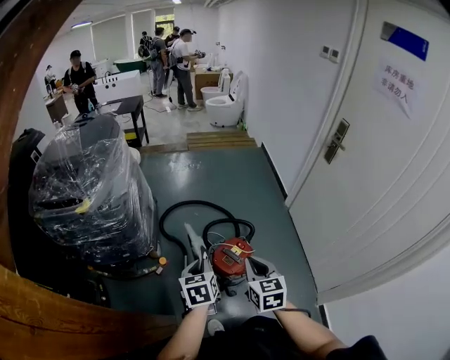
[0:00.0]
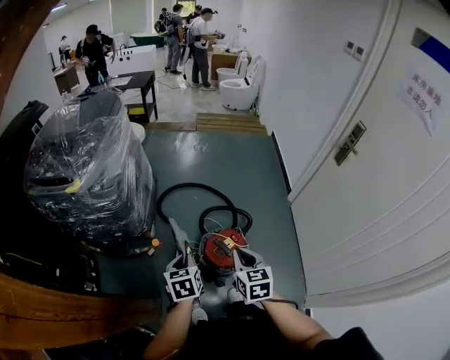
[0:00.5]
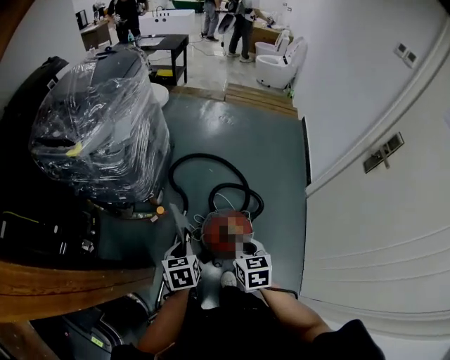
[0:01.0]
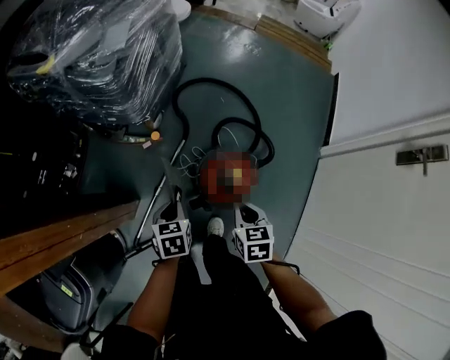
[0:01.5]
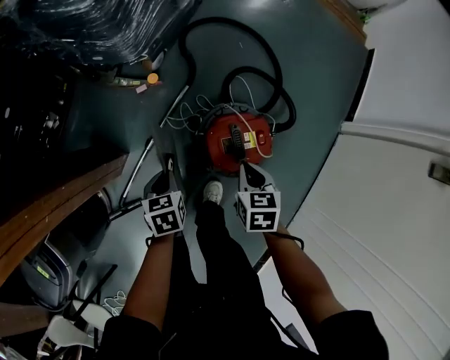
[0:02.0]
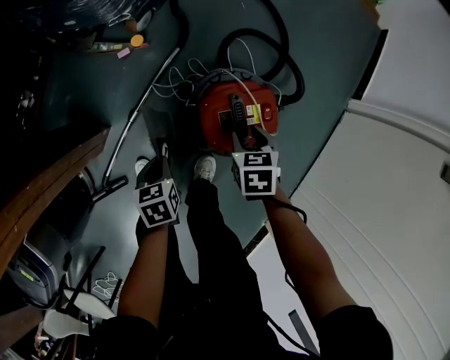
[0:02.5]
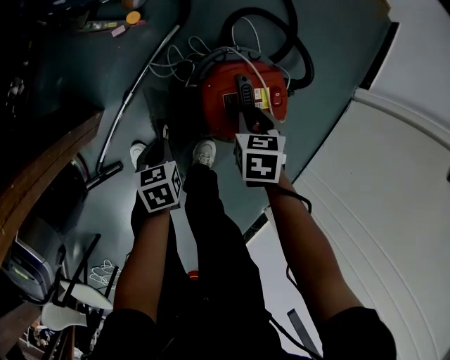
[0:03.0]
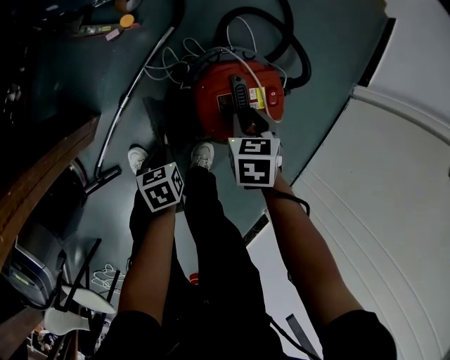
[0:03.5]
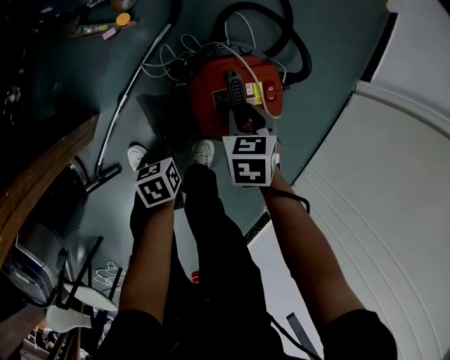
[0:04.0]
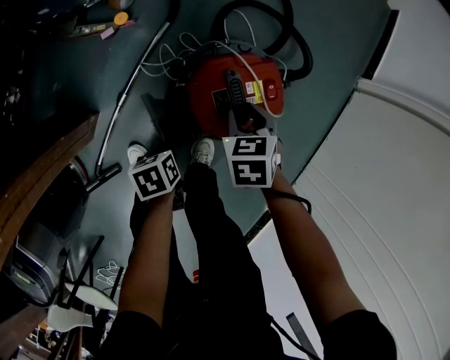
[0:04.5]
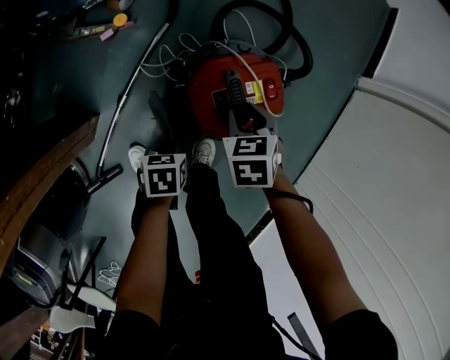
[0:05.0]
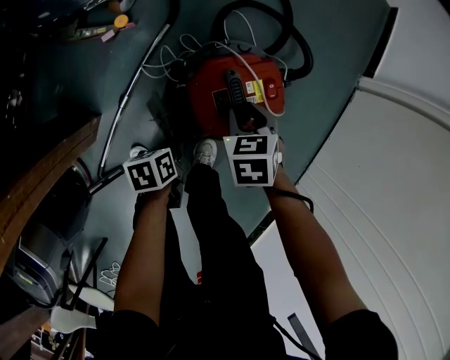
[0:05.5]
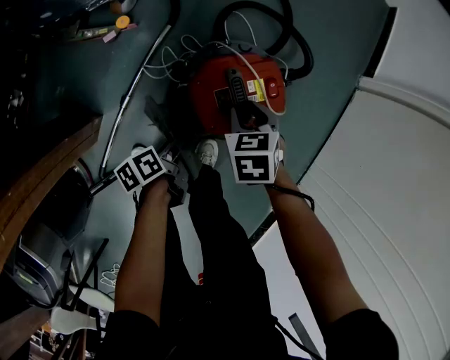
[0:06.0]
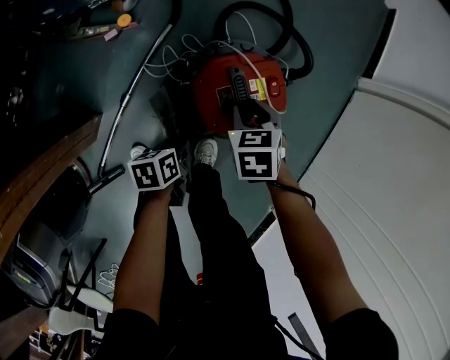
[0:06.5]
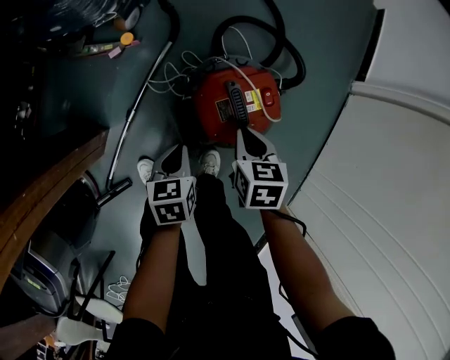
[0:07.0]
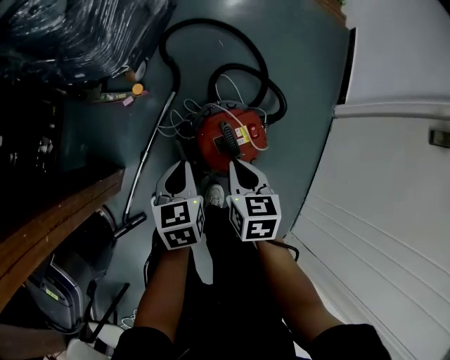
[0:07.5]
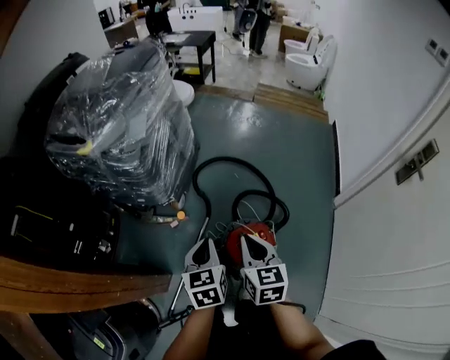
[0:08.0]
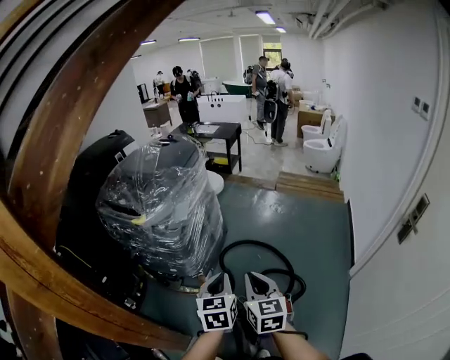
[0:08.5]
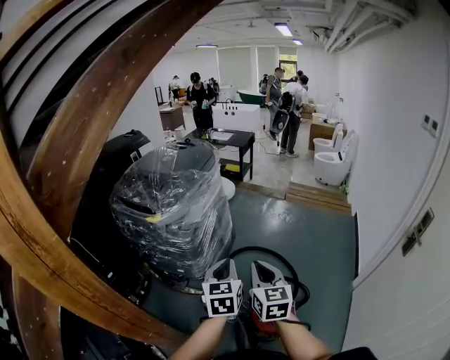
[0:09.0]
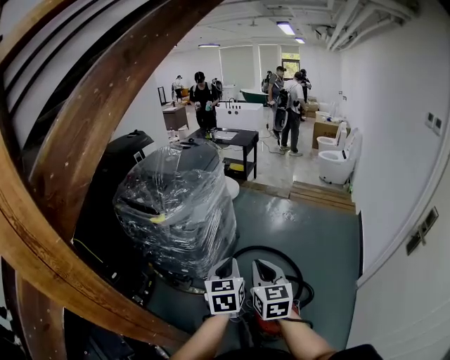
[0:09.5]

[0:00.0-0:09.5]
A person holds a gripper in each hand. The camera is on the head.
0:00.0 to 0:02.0: Both grippers travel together downward, some 35 cm. The right gripper swivels approximately 40 degrees. The left gripper turns by about 40 degrees.
0:02.0 to 0:04.0: Both grippers travel together downward, roughly 15 cm. The right gripper opens up.
0:05.5 to 0:07.5: Both grippers move upward, roughly 20 cm. The left gripper swivels some 40 degrees. The right gripper rotates roughly 30 degrees, and closes.
0:07.5 to 0:09.5: Both grippers move upward, about 50 cm. The left gripper changes its angle by approximately 30 degrees; the right gripper points its fingers roughly 40 degrees further upward.

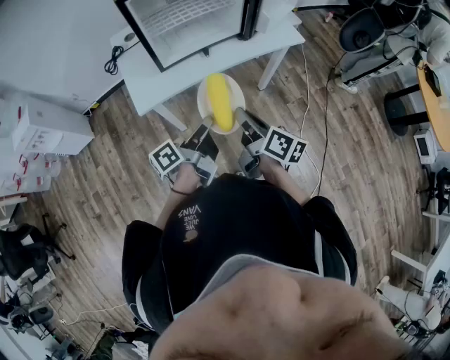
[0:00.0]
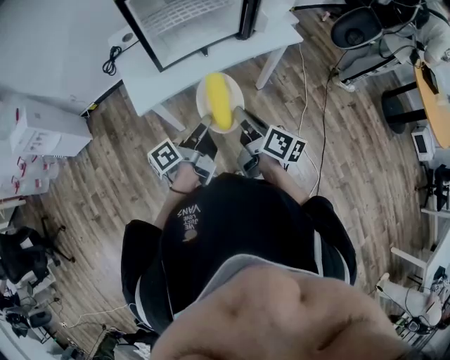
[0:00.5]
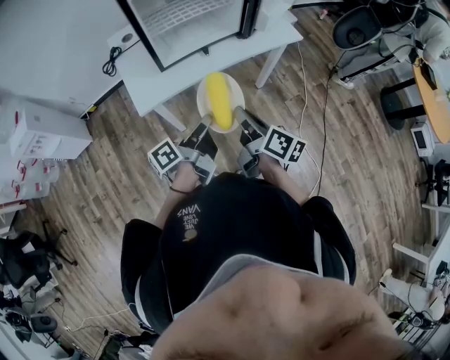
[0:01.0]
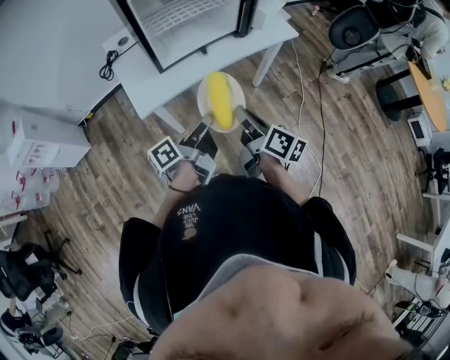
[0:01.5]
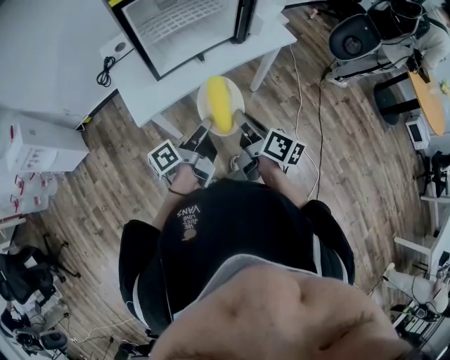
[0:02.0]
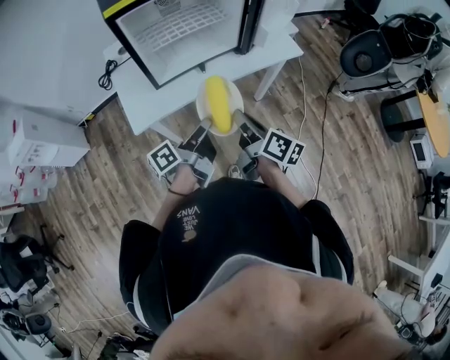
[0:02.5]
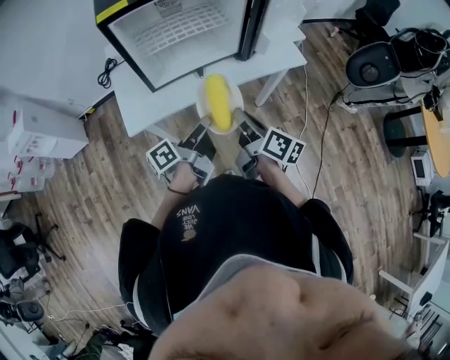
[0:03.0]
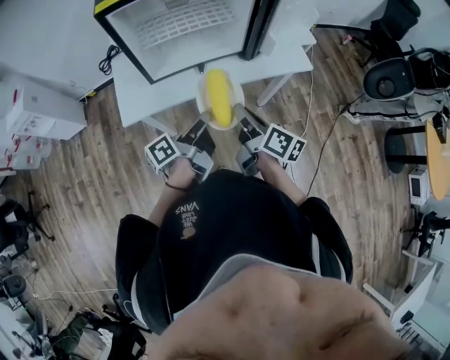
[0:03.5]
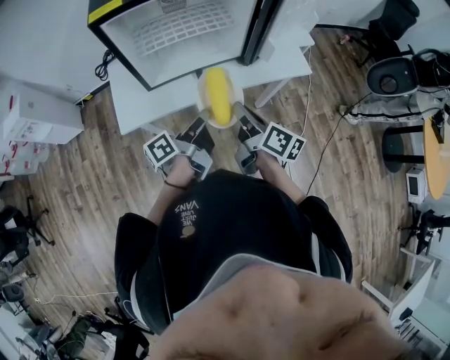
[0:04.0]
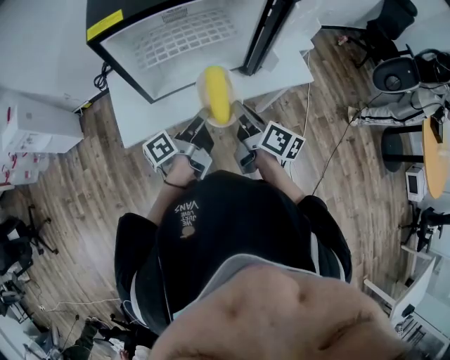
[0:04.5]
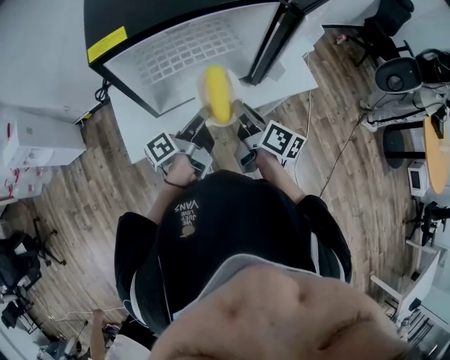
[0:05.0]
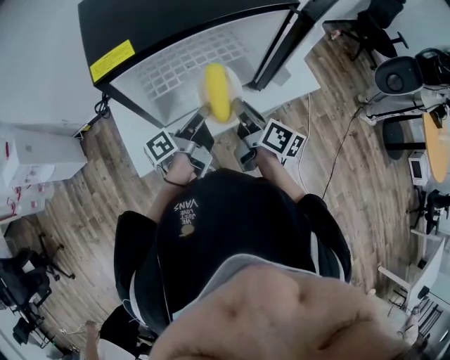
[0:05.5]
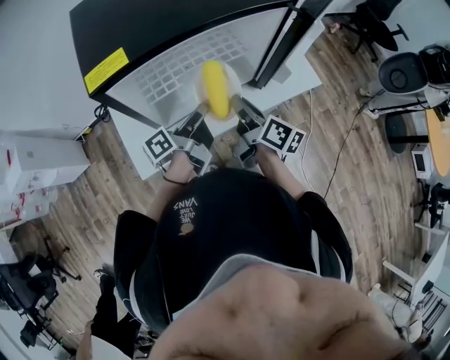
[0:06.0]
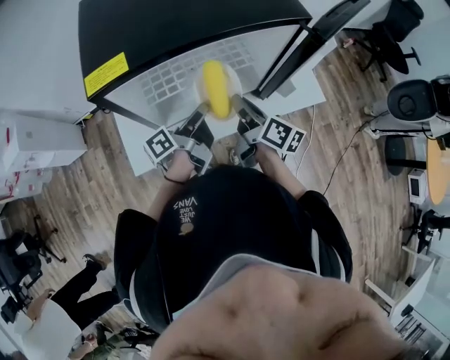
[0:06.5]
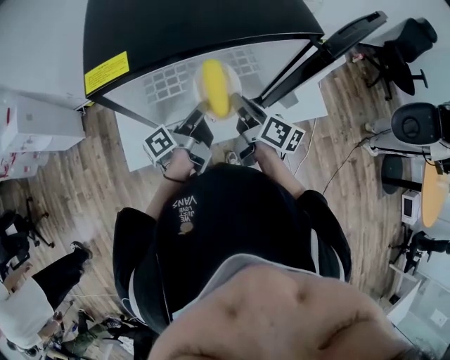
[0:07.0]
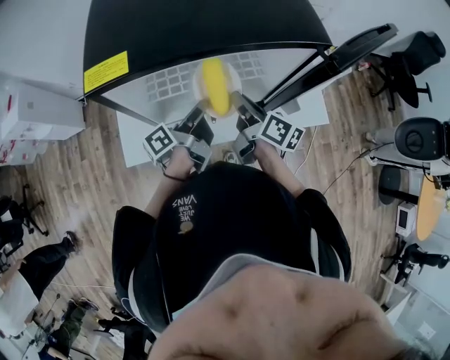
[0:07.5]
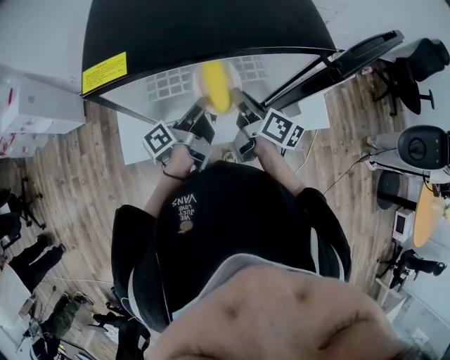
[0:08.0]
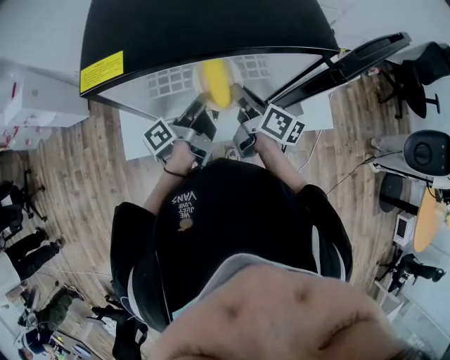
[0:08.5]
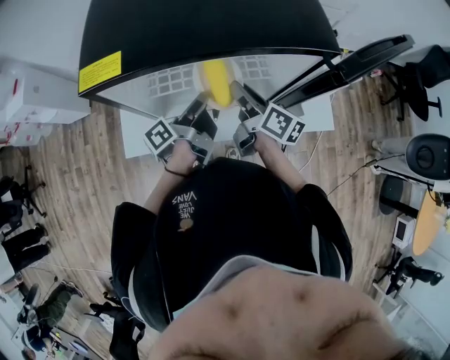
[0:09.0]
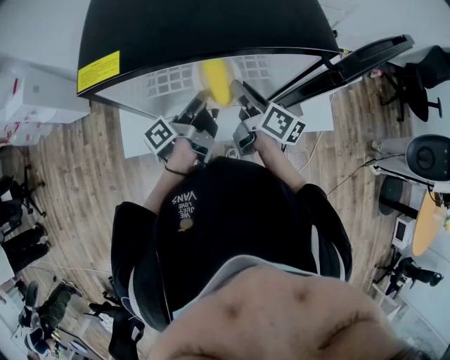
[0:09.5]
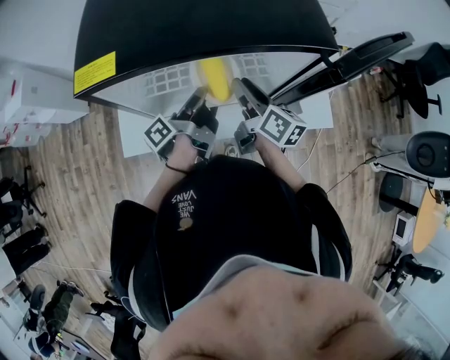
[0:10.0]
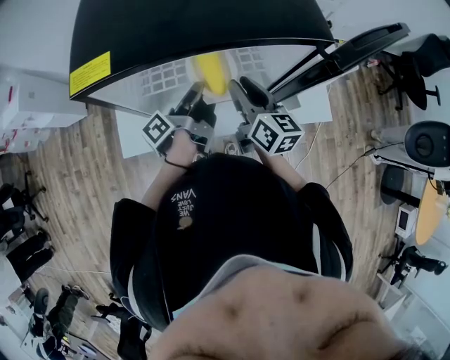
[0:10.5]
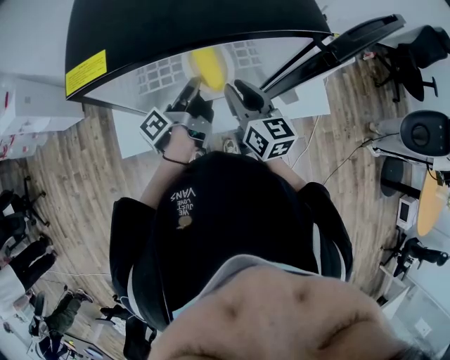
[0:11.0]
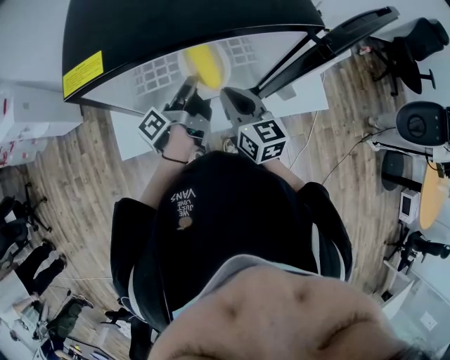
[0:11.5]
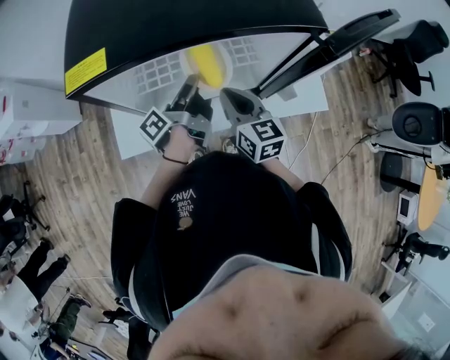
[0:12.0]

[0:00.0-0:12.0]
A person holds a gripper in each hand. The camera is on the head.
0:00.0 to 0:02.0: The grippers make only small movements.
0:02.0 to 0:04.0: Both grippers travel together forward, some 15 cm.
0:04.0 to 0:06.0: Both grippers travel together forward and to the left, approximately 15 cm.
0:06.0 to 0:08.0: The left gripper moves forward, some 5 cm, and changes its angle by some 20 degrees. The right gripper heads forward, covering some 10 cm.
0:08.0 to 0:10.0: The grippers stay close to where they were, moving slightly.
0:10.0 to 0:12.0: The right gripper moves backward, about 5 cm, turns by some 30 degrees, and closes its fingers.

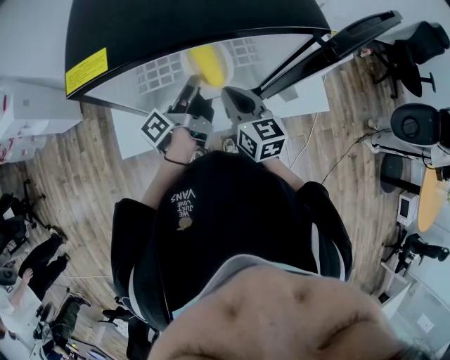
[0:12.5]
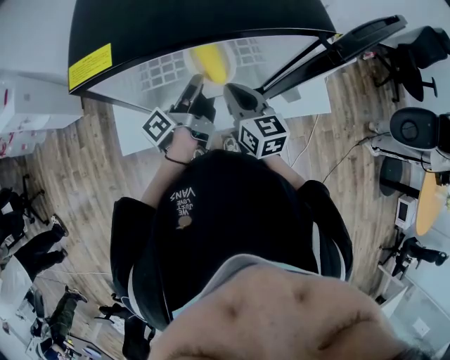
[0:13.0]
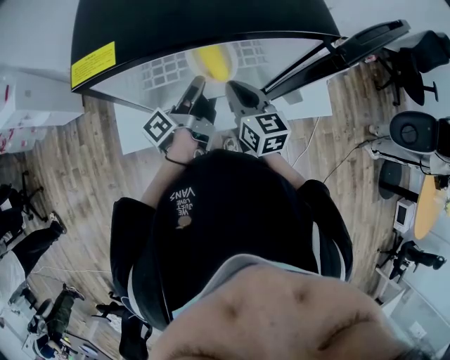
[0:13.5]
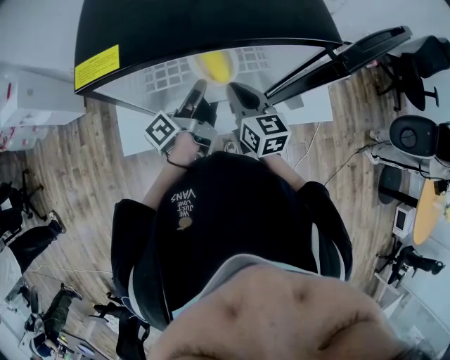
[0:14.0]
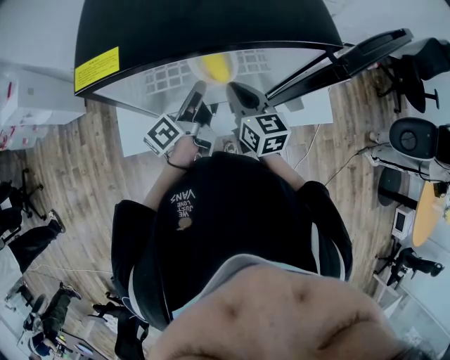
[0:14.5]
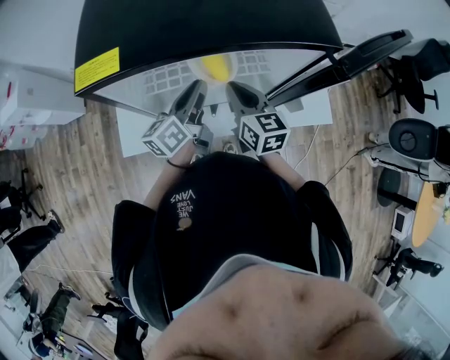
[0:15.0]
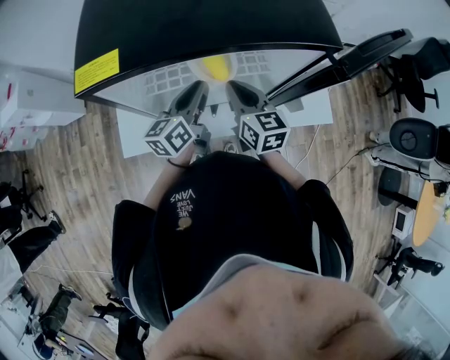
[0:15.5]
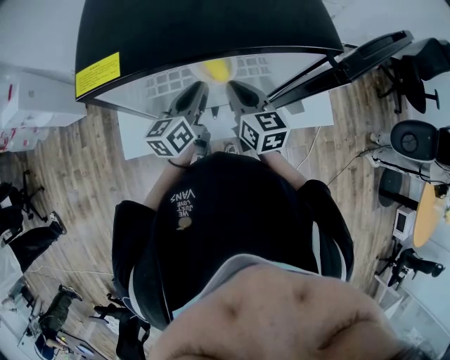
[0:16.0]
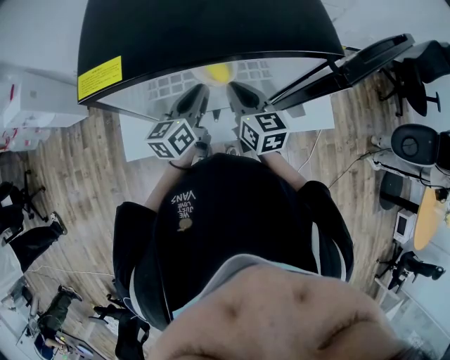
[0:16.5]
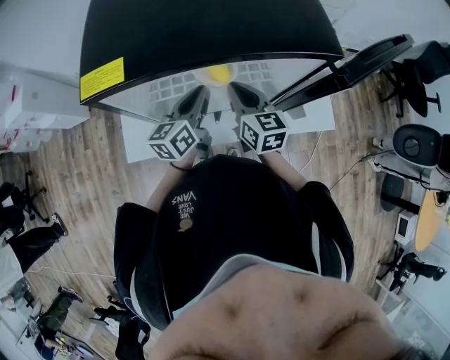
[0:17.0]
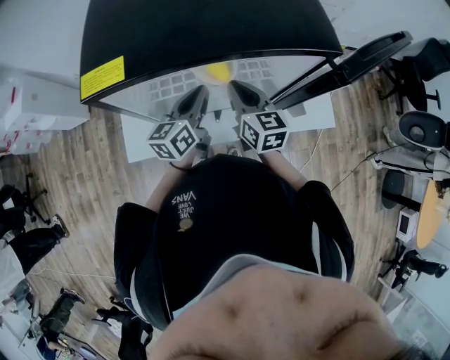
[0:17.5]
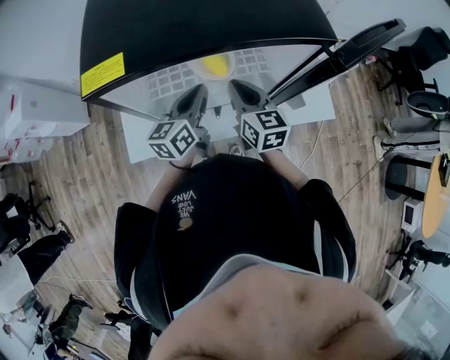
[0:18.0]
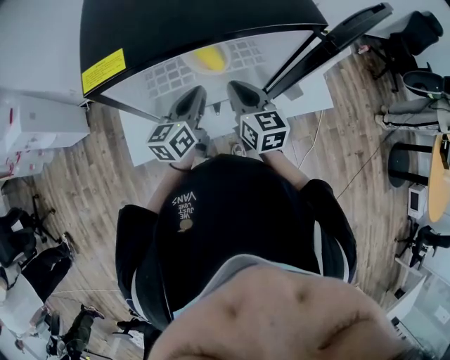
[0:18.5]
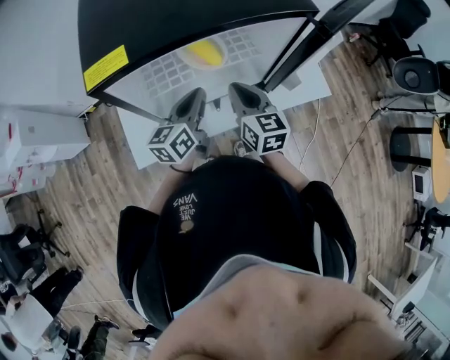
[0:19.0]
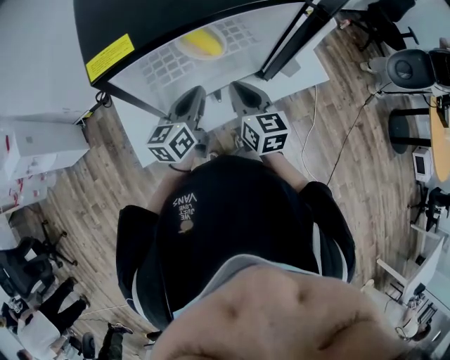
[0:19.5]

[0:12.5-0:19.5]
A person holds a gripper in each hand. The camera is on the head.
0:12.5 to 0:14.5: The grippers make only small movements.
0:14.5 to 0:16.0: The left gripper rotates roughly 40 degrees.
0:16.0 to 0:17.5: Both grippers stay put.
0:17.5 to 0:19.5: The grippers both shift backward by roughly 10 cm.
